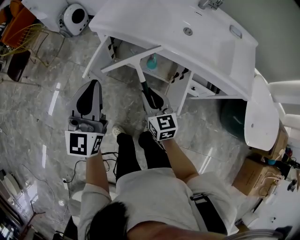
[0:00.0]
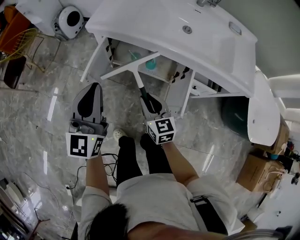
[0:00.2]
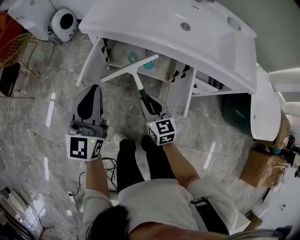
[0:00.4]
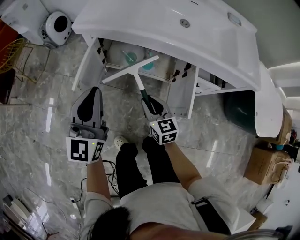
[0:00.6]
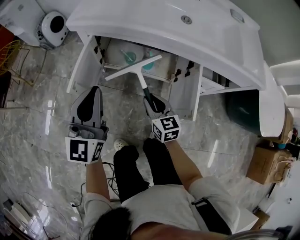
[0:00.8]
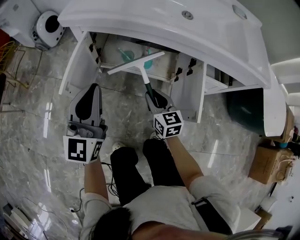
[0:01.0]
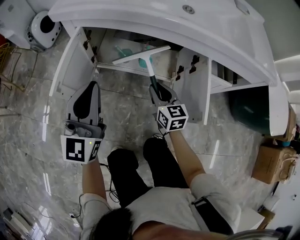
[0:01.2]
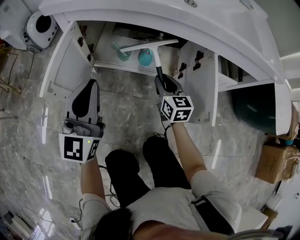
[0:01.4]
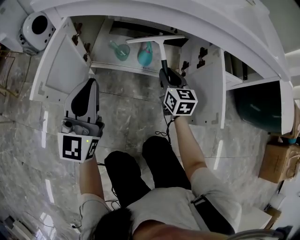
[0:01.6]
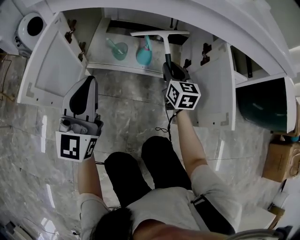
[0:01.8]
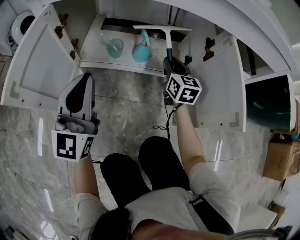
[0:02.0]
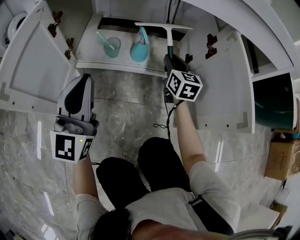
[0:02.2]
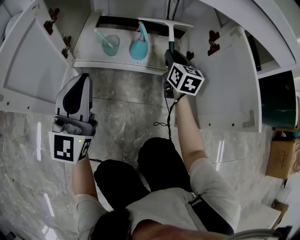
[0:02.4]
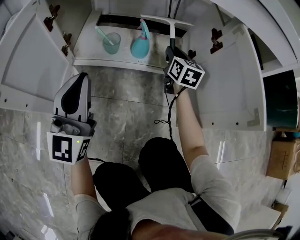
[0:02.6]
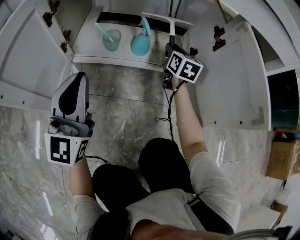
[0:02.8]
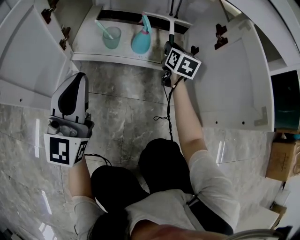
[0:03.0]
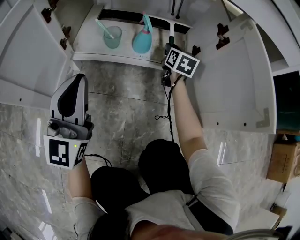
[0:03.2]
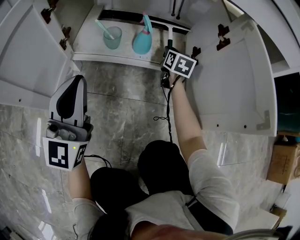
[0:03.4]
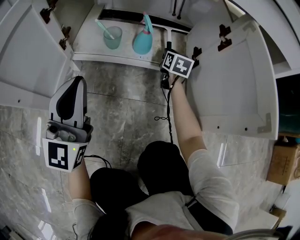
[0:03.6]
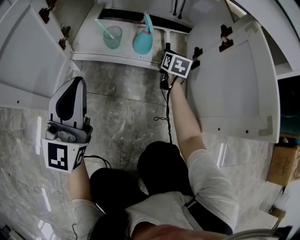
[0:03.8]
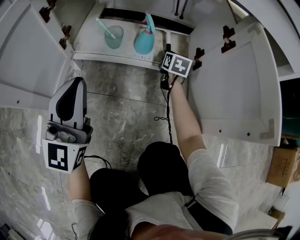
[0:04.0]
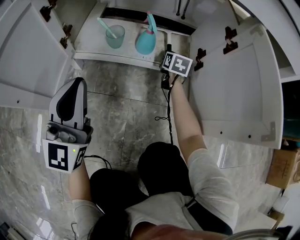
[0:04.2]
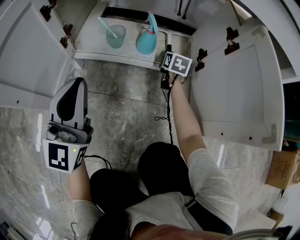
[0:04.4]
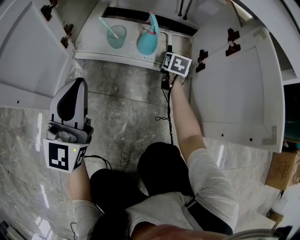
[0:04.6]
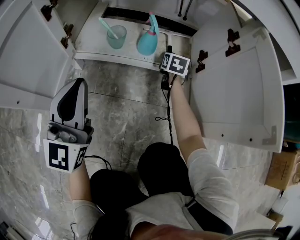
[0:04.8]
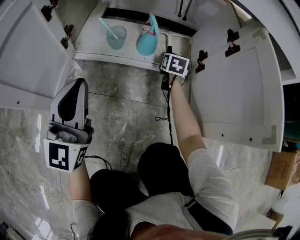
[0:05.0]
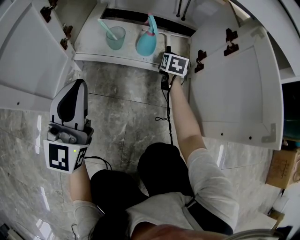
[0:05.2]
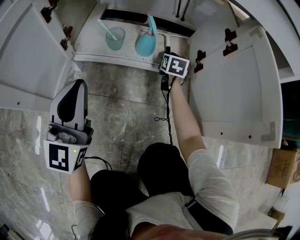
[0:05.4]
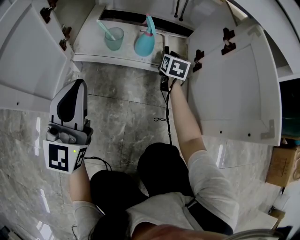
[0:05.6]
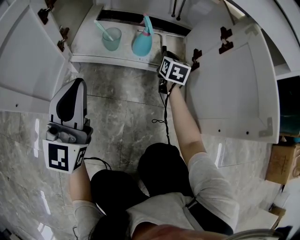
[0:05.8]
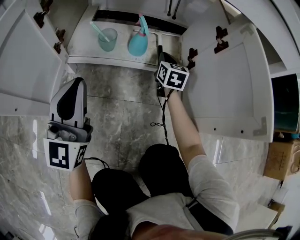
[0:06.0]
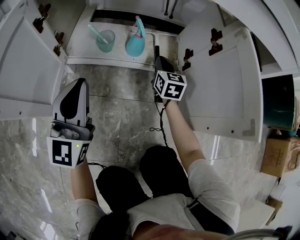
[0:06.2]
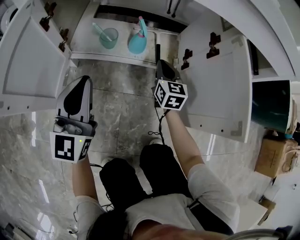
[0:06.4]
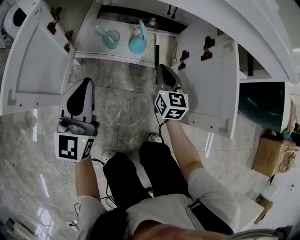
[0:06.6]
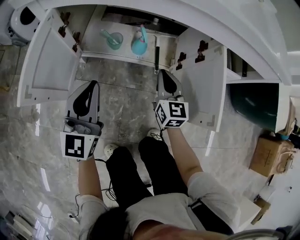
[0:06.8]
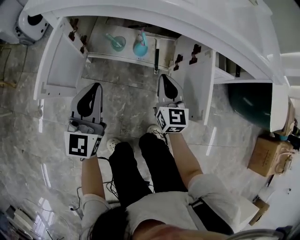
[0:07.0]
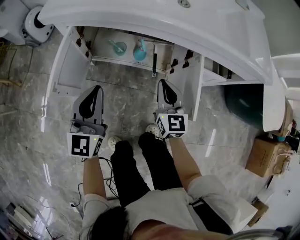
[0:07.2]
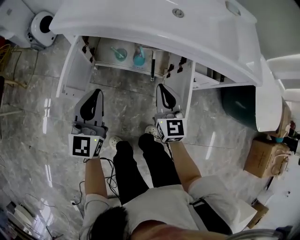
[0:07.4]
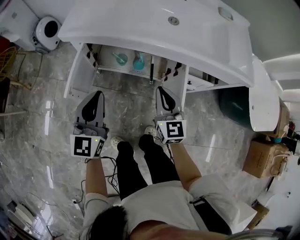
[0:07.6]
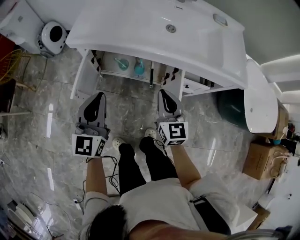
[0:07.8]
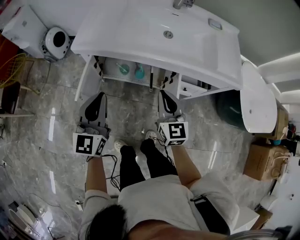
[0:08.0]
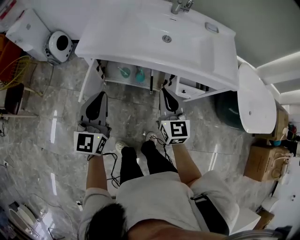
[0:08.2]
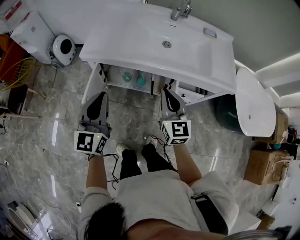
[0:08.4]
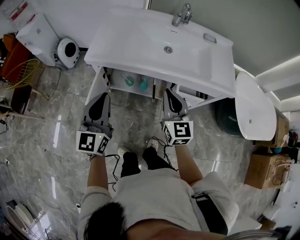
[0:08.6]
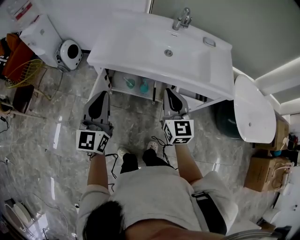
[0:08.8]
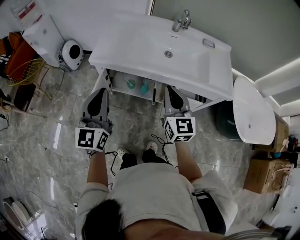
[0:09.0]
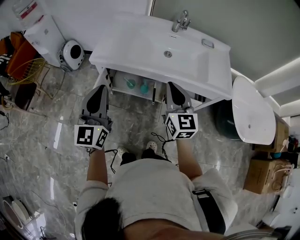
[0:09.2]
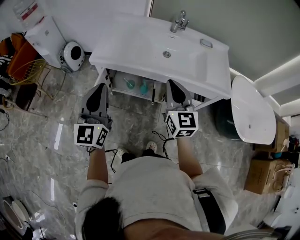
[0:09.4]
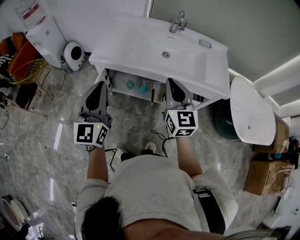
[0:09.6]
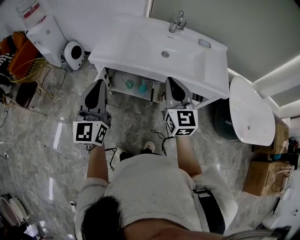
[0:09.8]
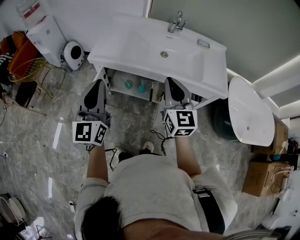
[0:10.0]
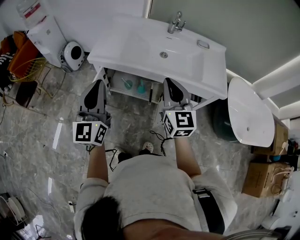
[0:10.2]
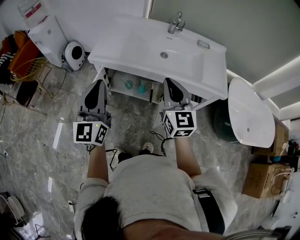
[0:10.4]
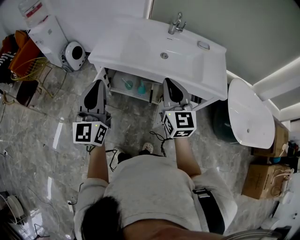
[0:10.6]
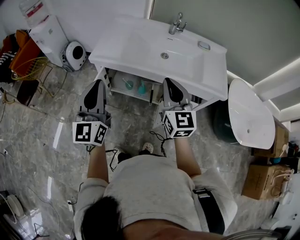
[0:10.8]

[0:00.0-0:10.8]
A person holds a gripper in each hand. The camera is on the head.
0:00.0 to 0:01.6: The right gripper travels downward and forward by about 35 cm, and changes its angle by some 20 degrees. The left gripper travels downward by about 35 cm.
0:01.6 to 0:03.0: The left gripper heads downward, covering approximately 15 cm. The right gripper travels downward and forward by about 20 cm.
0:03.0 to 0:04.6: The right gripper heads downward, covering some 10 cm.
0:04.6 to 0:06.2: The right gripper shifts about 10 cm upward and backward, and closes.
0:06.2 to 0:07.8: The grippers both shift upward by approximately 50 cm.
0:07.8 to 0:09.2: The grippers both shift upward by roughly 20 cm.
0:09.2 to 0:10.8: The right gripper shifts by approximately 5 cm. The left gripper shifts by roughly 5 cm.

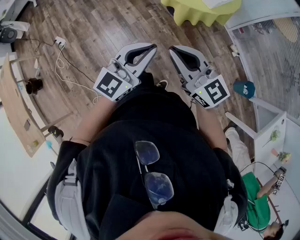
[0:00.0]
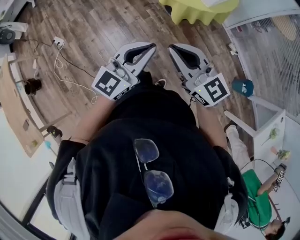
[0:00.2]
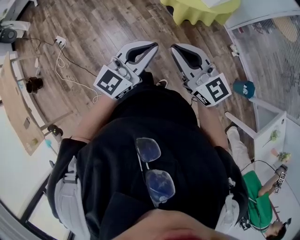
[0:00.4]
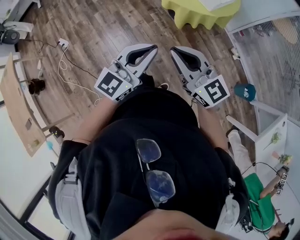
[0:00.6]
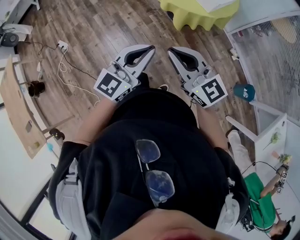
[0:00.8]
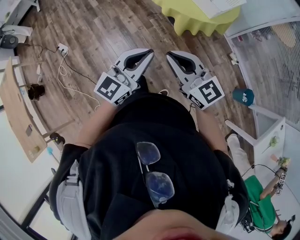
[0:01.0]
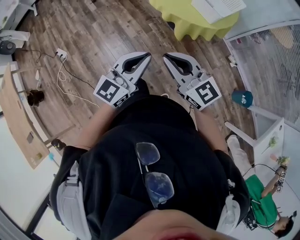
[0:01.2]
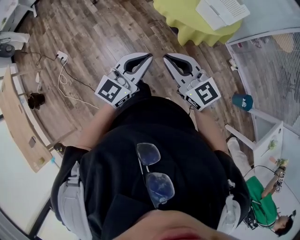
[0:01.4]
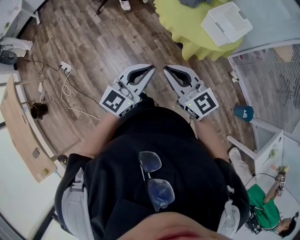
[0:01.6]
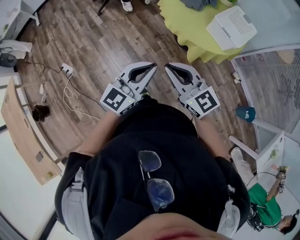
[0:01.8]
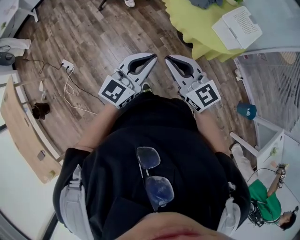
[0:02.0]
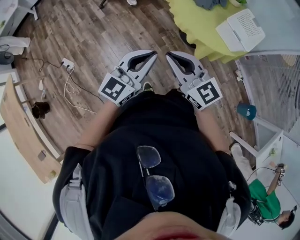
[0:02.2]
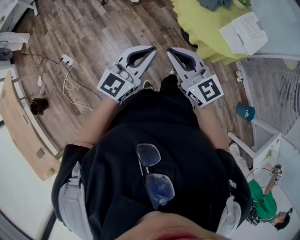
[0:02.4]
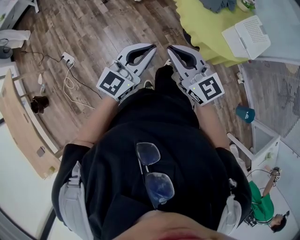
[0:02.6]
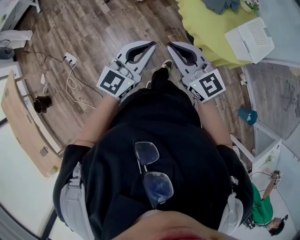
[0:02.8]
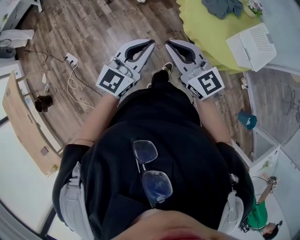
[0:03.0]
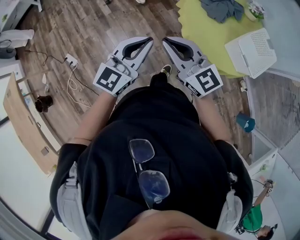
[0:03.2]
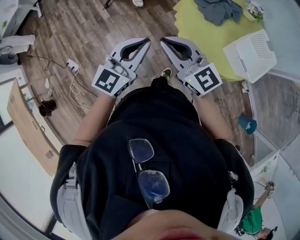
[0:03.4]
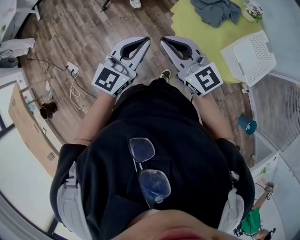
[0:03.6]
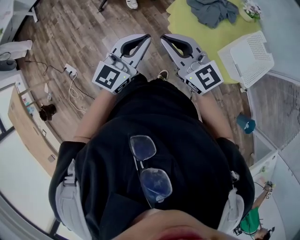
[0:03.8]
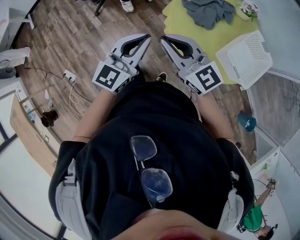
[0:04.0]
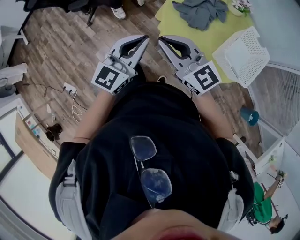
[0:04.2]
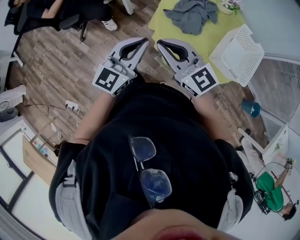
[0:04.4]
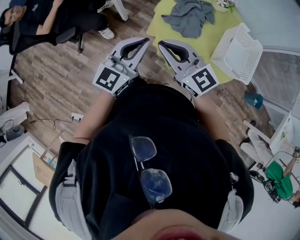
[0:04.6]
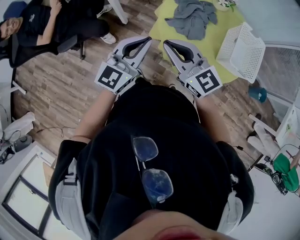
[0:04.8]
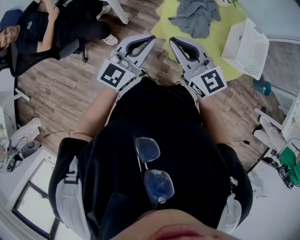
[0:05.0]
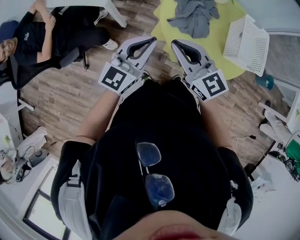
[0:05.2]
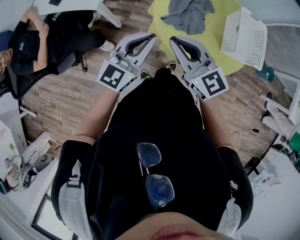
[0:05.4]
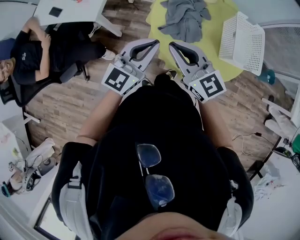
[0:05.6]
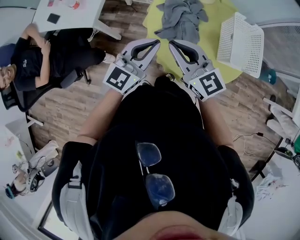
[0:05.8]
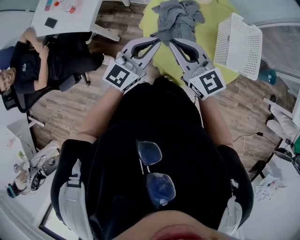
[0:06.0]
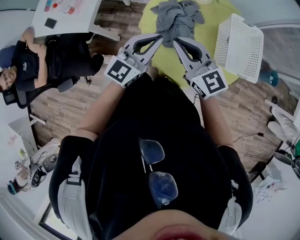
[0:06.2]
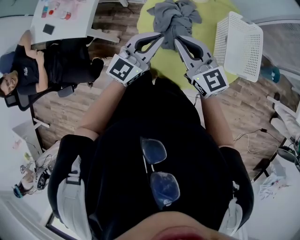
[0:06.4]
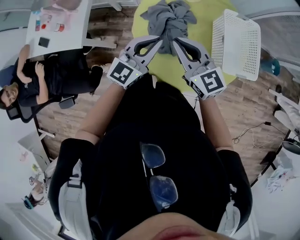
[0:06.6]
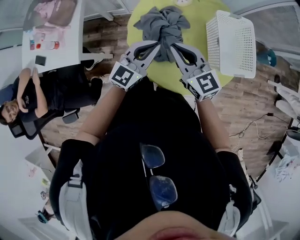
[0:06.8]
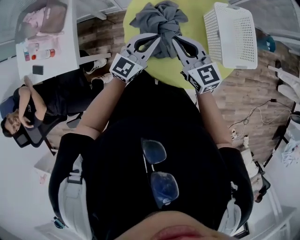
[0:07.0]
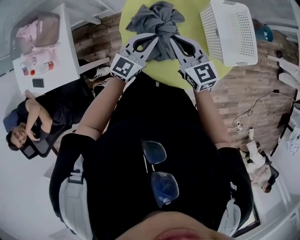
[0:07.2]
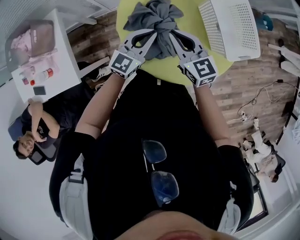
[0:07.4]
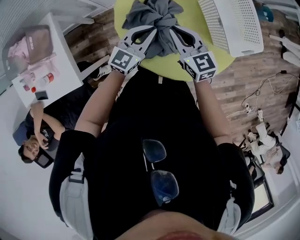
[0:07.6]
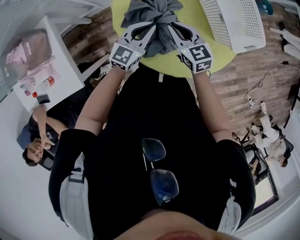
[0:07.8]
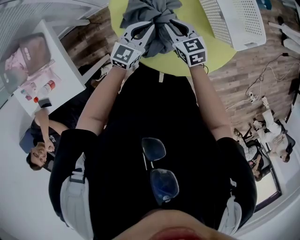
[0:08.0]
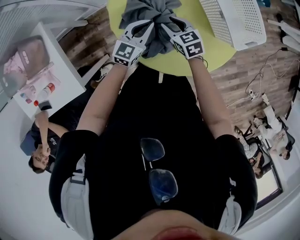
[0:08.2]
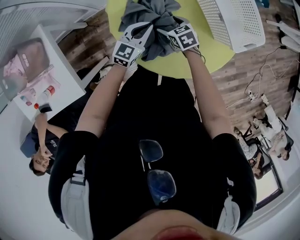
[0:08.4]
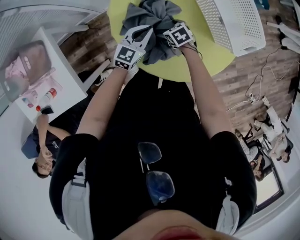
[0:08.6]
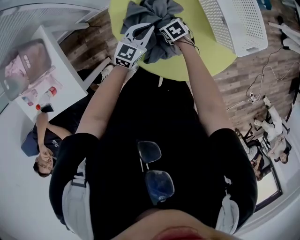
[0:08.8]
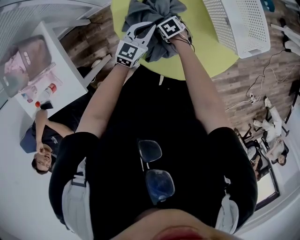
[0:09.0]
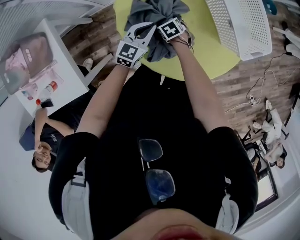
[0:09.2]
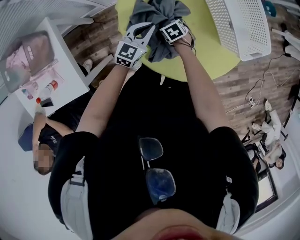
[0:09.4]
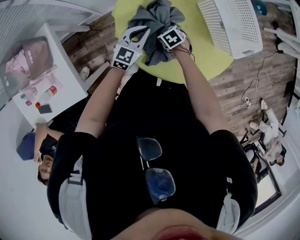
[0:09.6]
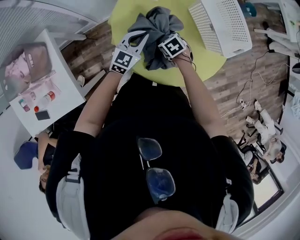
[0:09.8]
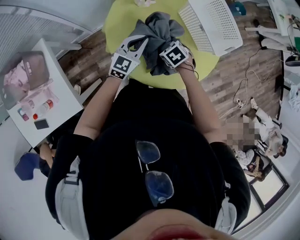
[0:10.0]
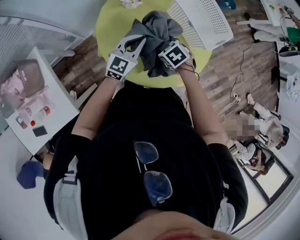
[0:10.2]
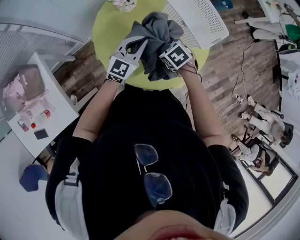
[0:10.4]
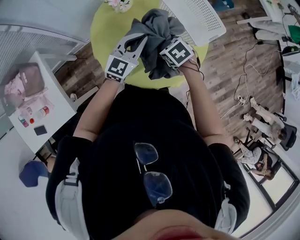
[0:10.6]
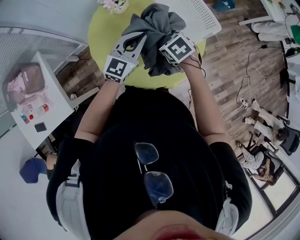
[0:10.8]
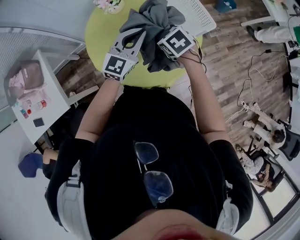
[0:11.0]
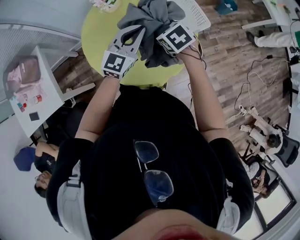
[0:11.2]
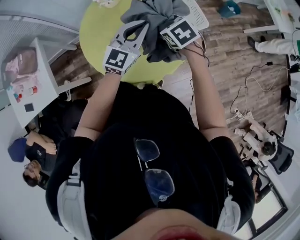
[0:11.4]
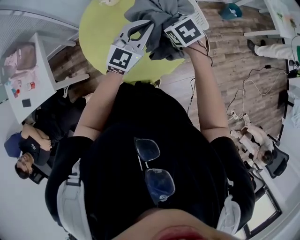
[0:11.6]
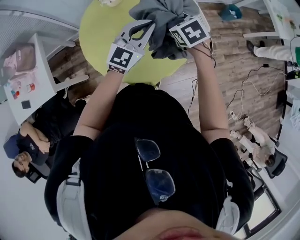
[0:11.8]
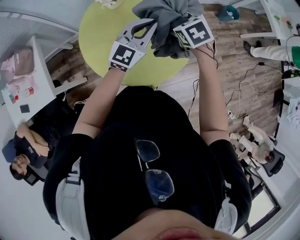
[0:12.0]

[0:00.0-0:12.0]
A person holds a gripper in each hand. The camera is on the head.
0:00.0 to 0:01.6: Both grippers move forward and to the left, about 20 cm.
0:01.6 to 0:03.0: The grippers both shift forward and to the left by some 25 cm.
0:03.0 to 0:04.4: The grippers both shift forward by approximately 30 cm.
0:04.4 to 0:06.0: The left gripper changes place by about 20 cm, and turns by roughly 30 degrees. The right gripper shifts by some 20 cm, and changes its angle by approximately 30 degrees.
0:06.0 to 0:07.6: The right gripper changes place by about 25 cm, and rotates some 40 degrees. The left gripper moves approximately 25 cm, and rotates roughly 30 degrees.
0:07.6 to 0:09.0: The right gripper goes some 25 cm downward, angles its fingers downward, by about 50 degrees, and opens, while the left gripper moves downward, about 10 cm.
0:09.0 to 0:10.4: The left gripper heads upward and to the right, covering roughly 15 cm; the right gripper shifts some 25 cm upward, to the right and backward.
0:10.4 to 0:12.0: The grippers both shift to the right and upward by about 25 cm.

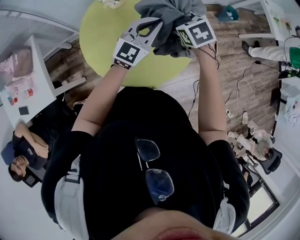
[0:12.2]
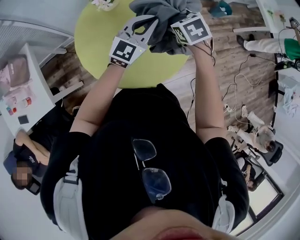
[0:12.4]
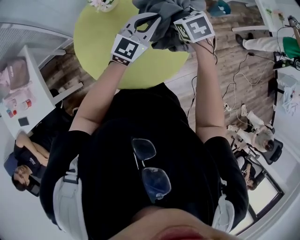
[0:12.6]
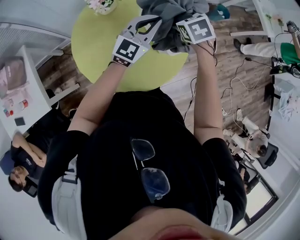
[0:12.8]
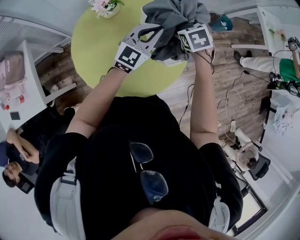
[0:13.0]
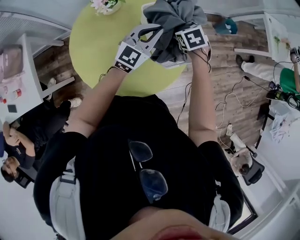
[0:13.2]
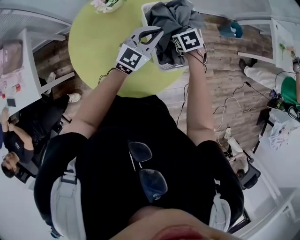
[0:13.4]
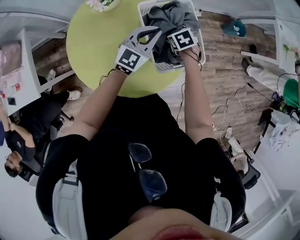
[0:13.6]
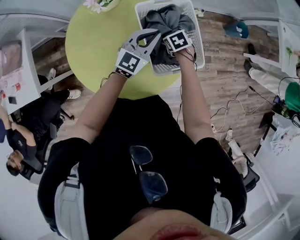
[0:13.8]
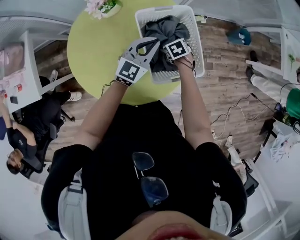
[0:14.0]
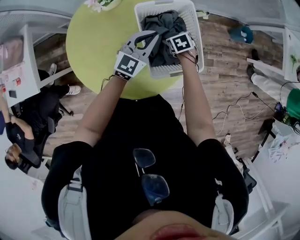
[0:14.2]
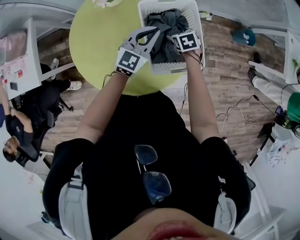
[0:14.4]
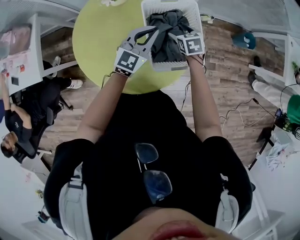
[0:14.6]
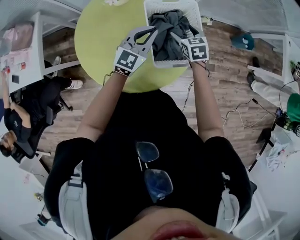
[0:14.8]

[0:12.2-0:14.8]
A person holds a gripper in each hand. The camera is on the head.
0:12.2 to 0:13.4: The left gripper heads forward and downward, covering approximately 15 cm; the right gripper travels downward, forward and to the right by roughly 20 cm.
0:13.4 to 0:14.8: The right gripper moves some 10 cm downward and comes back, and swivels some 20 degrees.
